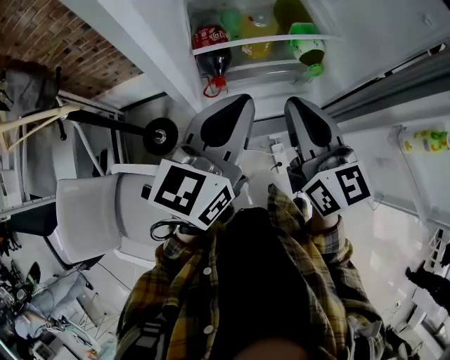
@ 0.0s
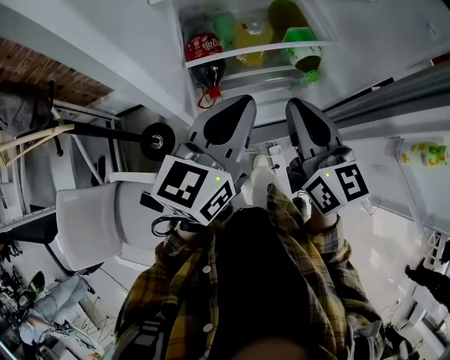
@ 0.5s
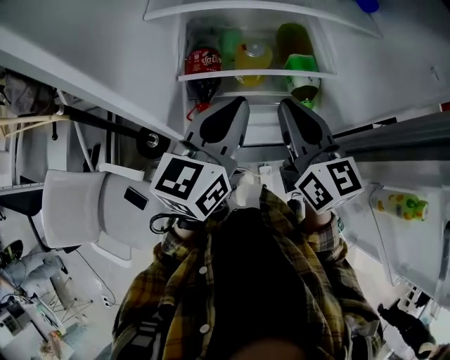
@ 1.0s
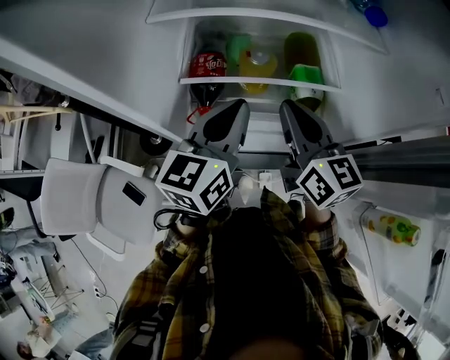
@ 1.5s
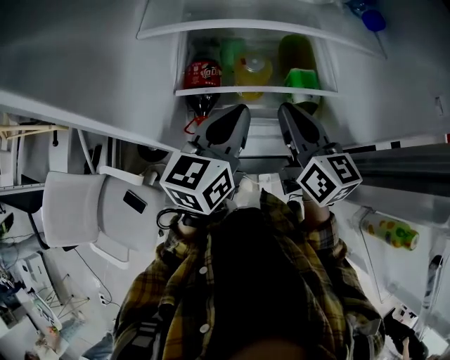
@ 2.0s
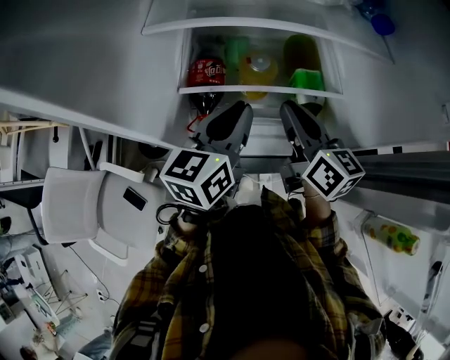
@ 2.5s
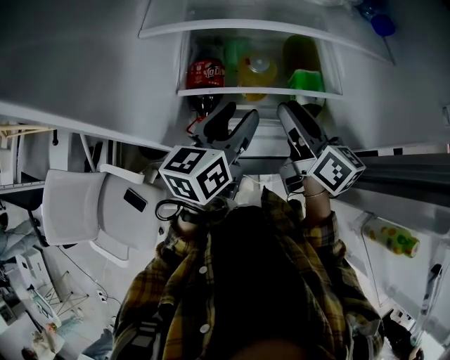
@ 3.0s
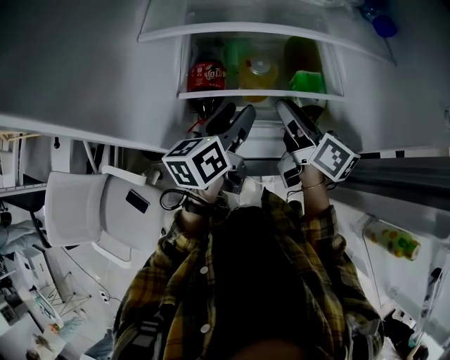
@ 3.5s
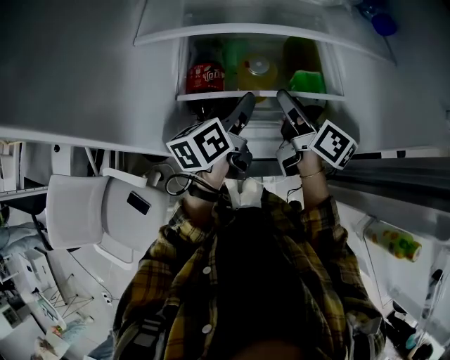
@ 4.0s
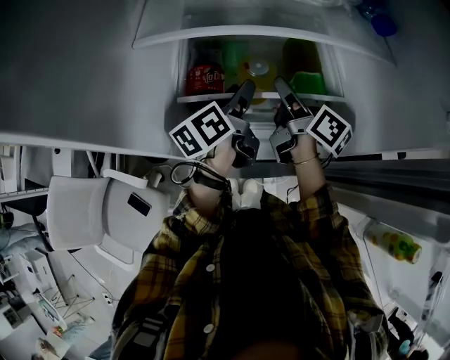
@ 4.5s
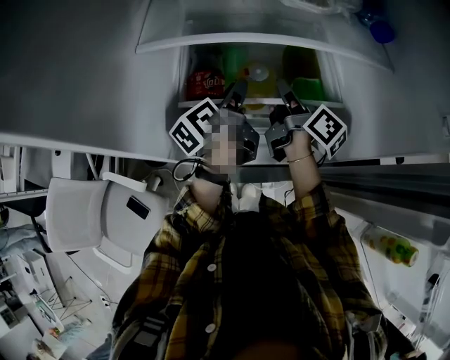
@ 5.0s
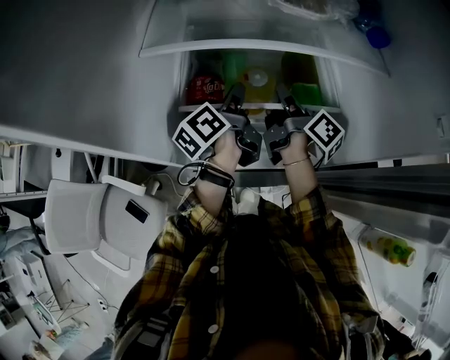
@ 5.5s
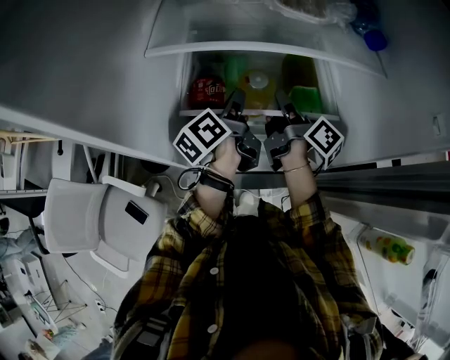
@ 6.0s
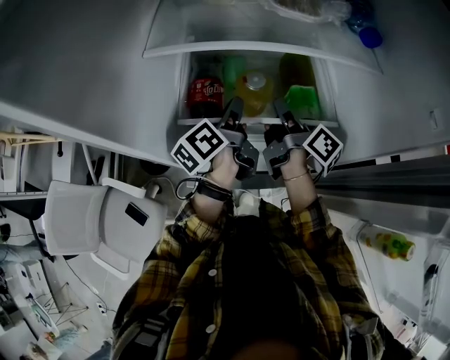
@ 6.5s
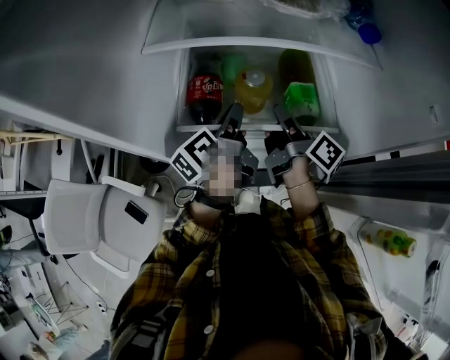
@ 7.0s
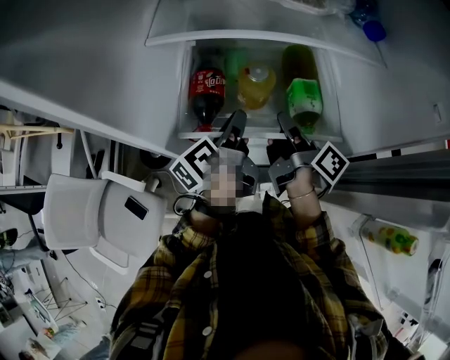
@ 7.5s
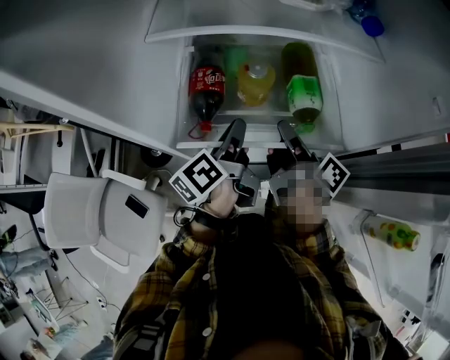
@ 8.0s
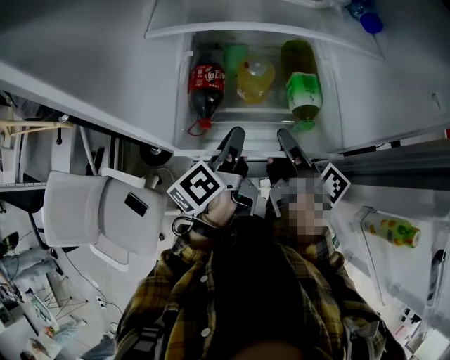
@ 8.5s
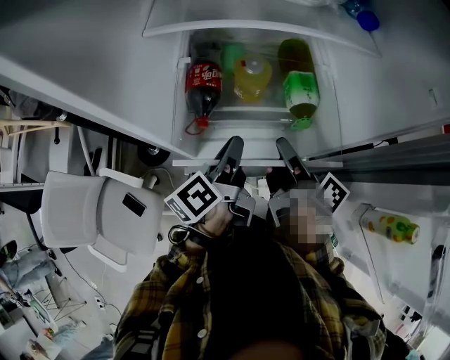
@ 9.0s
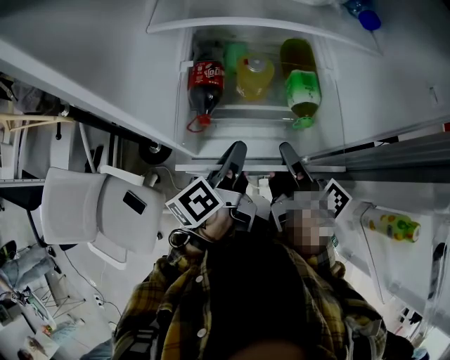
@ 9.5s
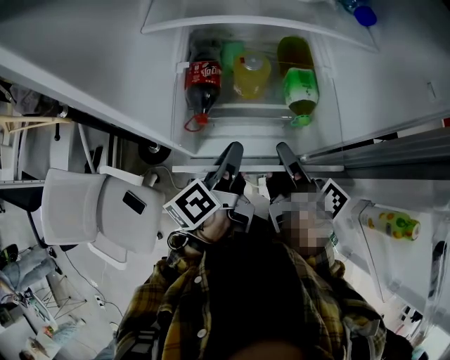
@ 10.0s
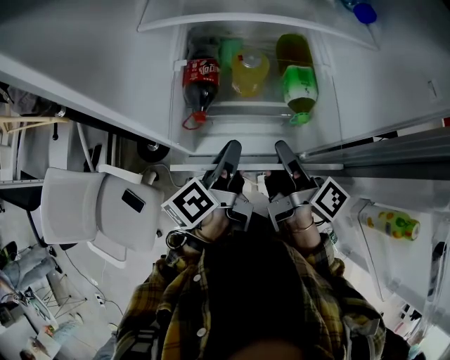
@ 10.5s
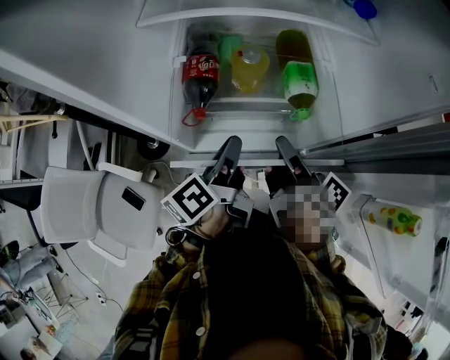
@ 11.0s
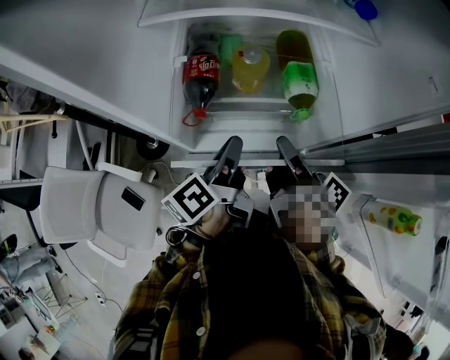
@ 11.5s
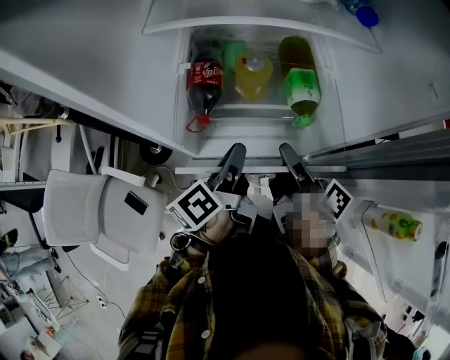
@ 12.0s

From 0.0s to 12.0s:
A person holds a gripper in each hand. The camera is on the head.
From 0.0s to 2.0s: The two grippers go approximately 15 cm forward and to the right.
From 2.0s to 4.0s: The left gripper moves downward and forward, roughly 10 cm, rotates approximately 30 degrees, and opens its fingers, while the right gripper goes about 10 cm forward and downward, turns by approximately 30 degrees, and opens its fingers.
From 4.0s to 6.0s: The left gripper changes its angle by approximately 20 degrees, and closes its fingers. Meanwhile the right gripper swivels some 20 degrees, and closes up.
From 6.0s to 8.0s: The grippers both shift backward by roughly 10 cm.
From 8.0s to 10.0s: Both grippers travel together backward, approximately 5 cm.
From 10.0s to 12.0s: Both grippers stay put.

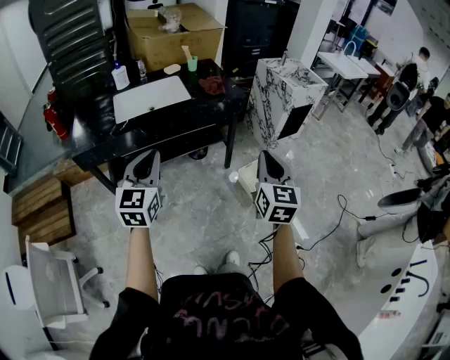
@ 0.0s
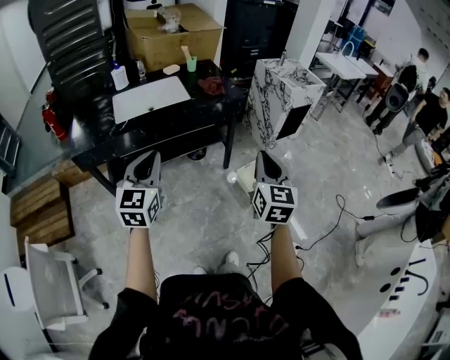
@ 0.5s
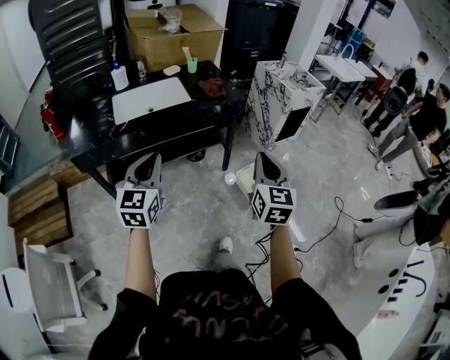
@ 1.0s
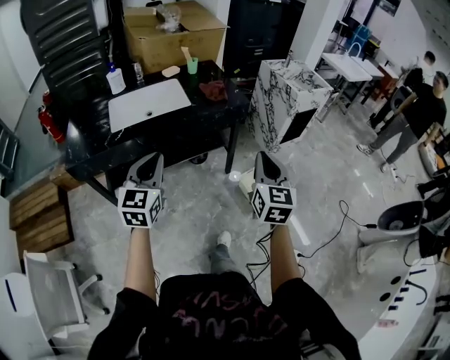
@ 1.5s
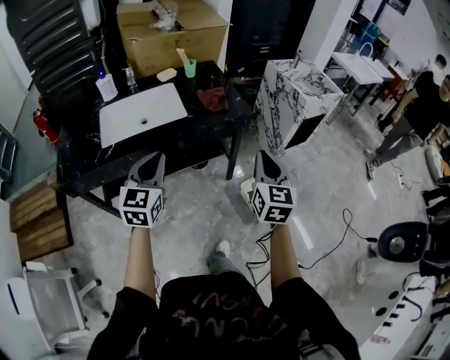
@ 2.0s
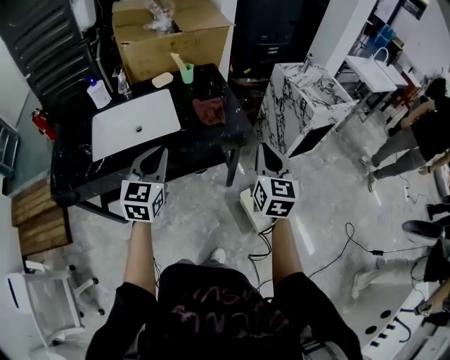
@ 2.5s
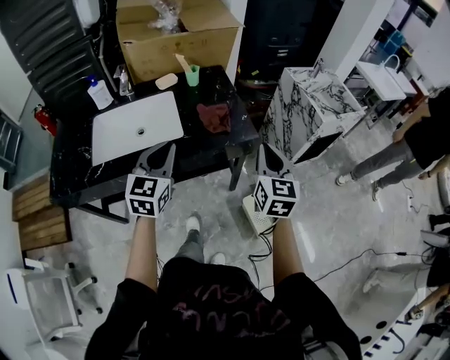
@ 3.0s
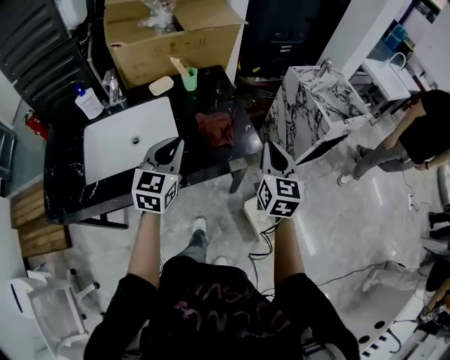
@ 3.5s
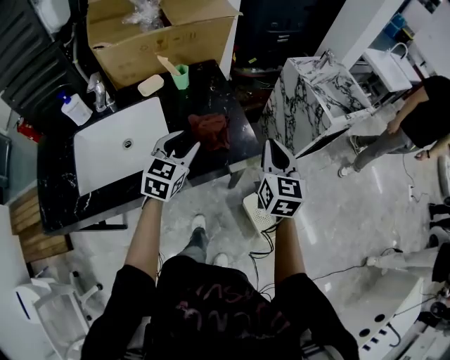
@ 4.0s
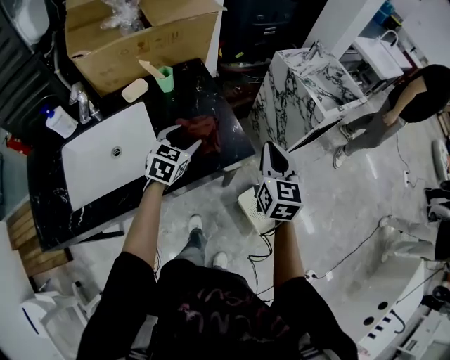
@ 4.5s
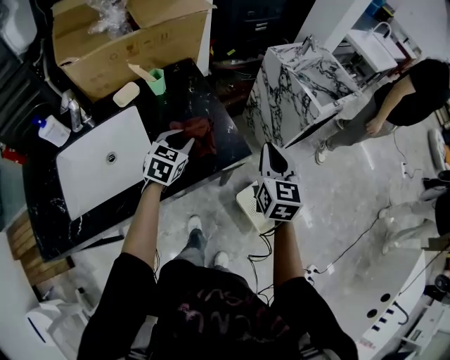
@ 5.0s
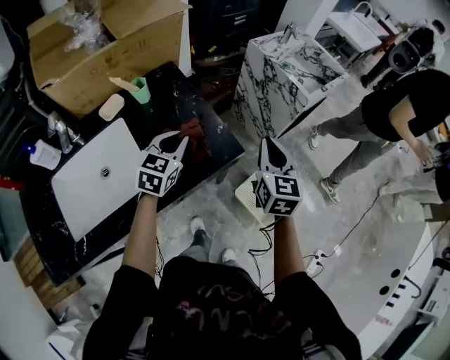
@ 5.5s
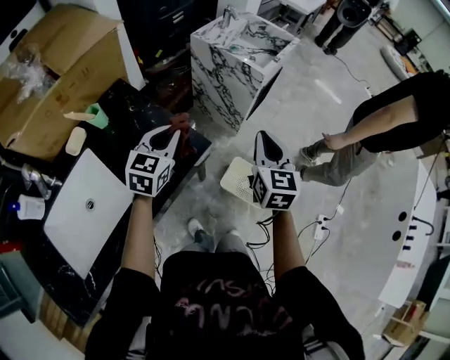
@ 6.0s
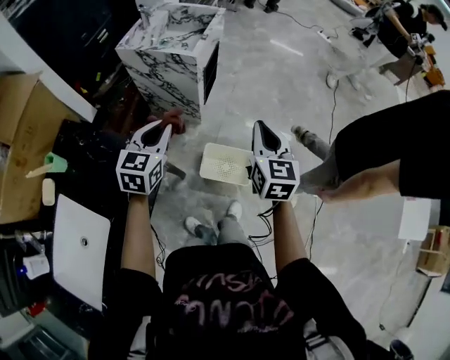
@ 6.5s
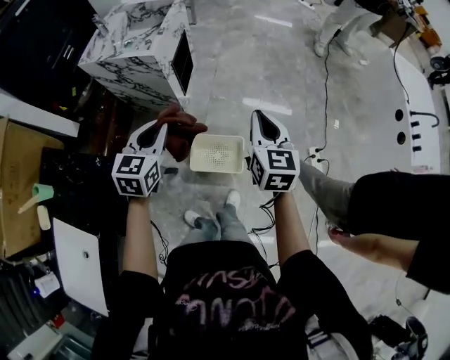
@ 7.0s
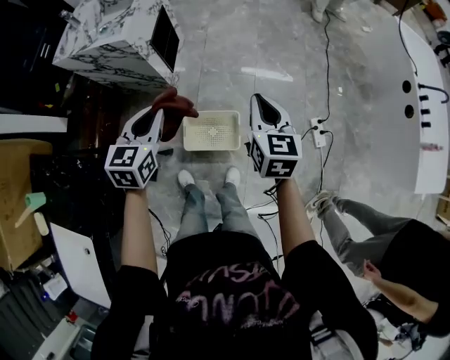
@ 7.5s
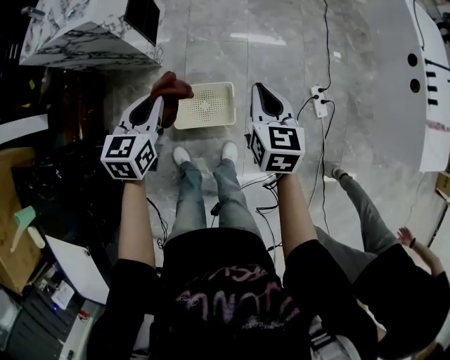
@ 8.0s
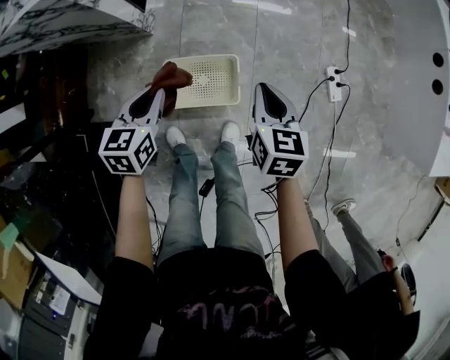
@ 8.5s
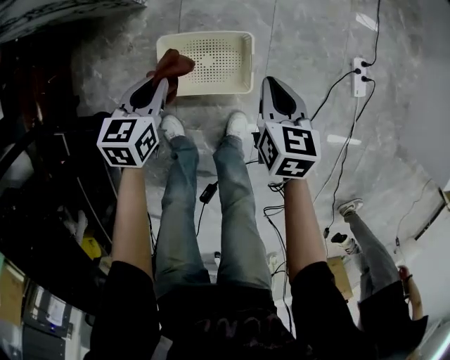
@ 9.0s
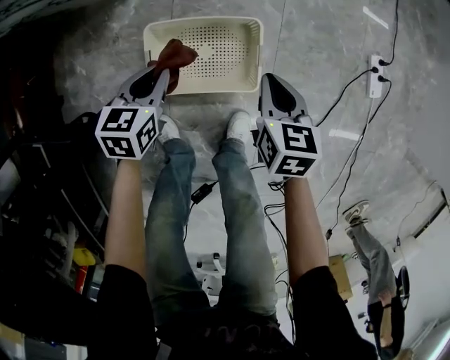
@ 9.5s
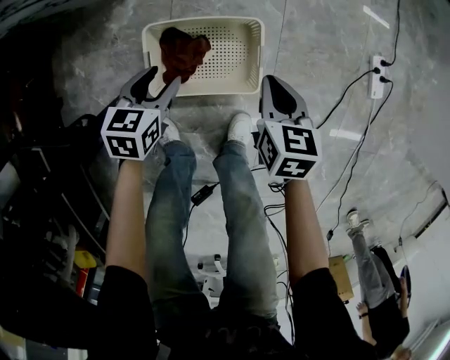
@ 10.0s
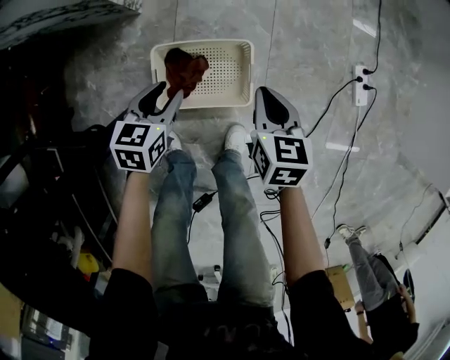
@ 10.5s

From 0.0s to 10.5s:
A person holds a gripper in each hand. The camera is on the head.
From 0.0s to 2.0s: The two grippers go some 20 cm forward.
From 2.0s to 4.0s: The two grippers go about 35 cm forward. The left gripper opens.
From 4.0s to 6.5s: The left gripper reaches approximately 10 cm downward, then returns, swivels approximately 40 degrees, and closes its fingers, while the right gripper ends up some 30 cm from where it was, and turns by about 50 degrees.
From 6.5s to 8.5s: Both grippers move downward and to the right, approximately 40 cm. The left gripper turns by some 30 degrees; the right gripper changes its angle by some 30 degrees.
From 8.5s to 10.5s: The two grippers go about 25 cm downward. The left gripper opens its fingers.

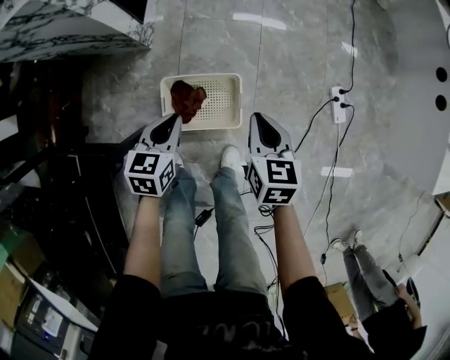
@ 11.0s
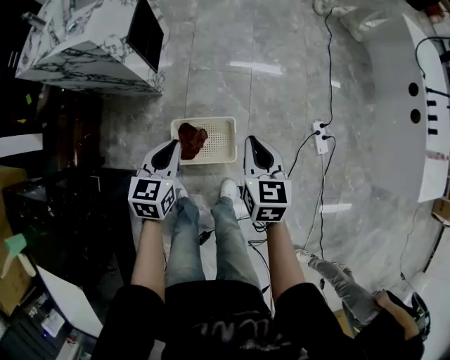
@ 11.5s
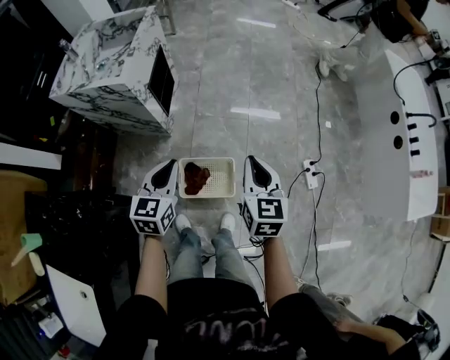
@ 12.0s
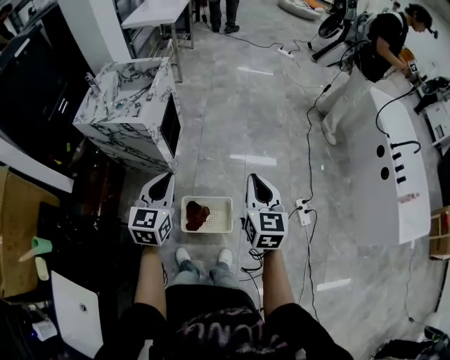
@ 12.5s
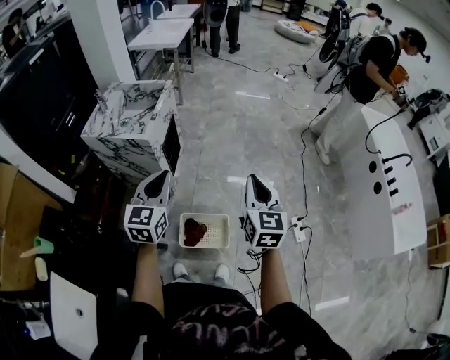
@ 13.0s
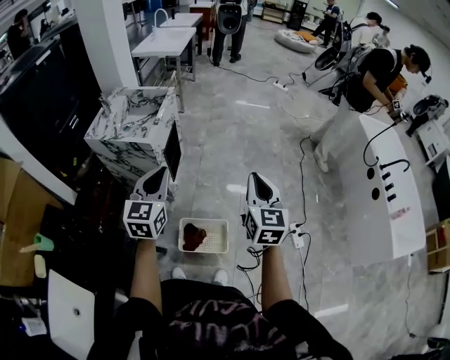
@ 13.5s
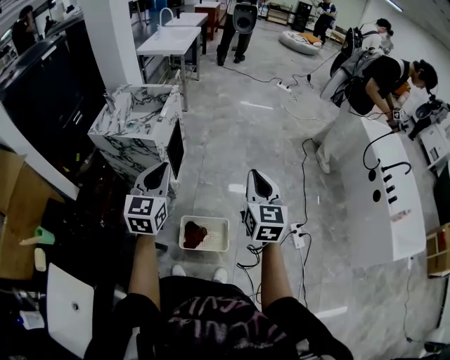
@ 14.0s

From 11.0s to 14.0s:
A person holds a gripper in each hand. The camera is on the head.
From 11.0s to 12.5s: The grippers both shift upward by some 50 cm. The right gripper rotates some 30 degrees. The left gripper swivels roughly 30 degrees.
From 12.5s to 14.0s: Both grippers move upward, roughly 10 cm.

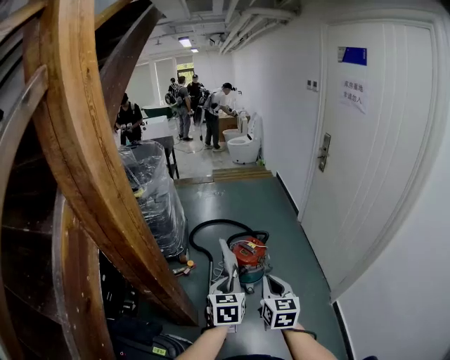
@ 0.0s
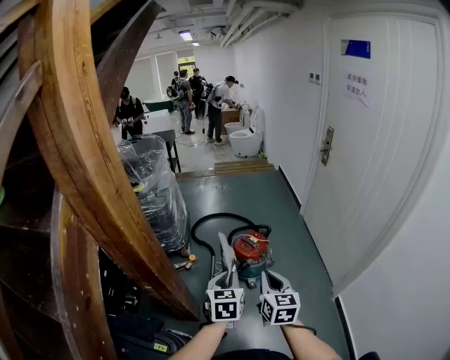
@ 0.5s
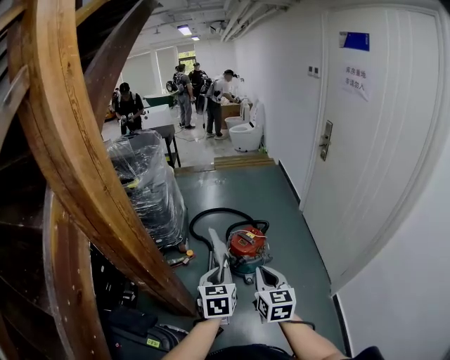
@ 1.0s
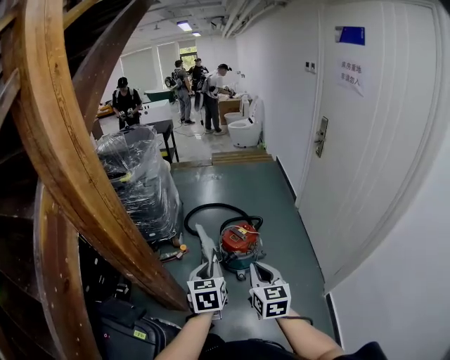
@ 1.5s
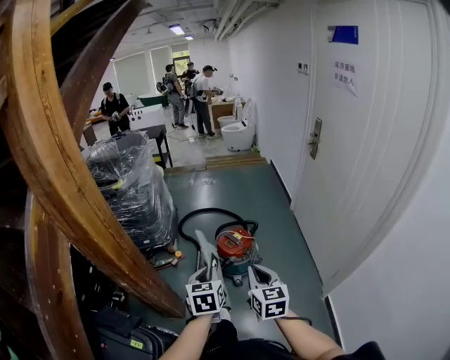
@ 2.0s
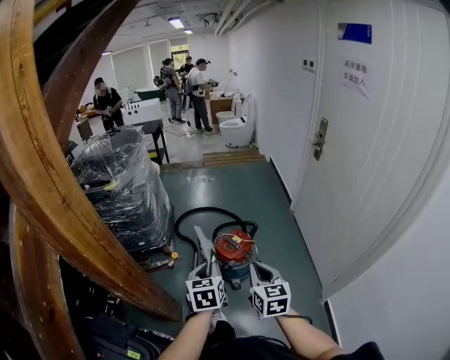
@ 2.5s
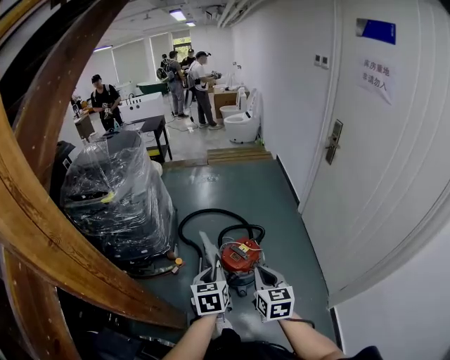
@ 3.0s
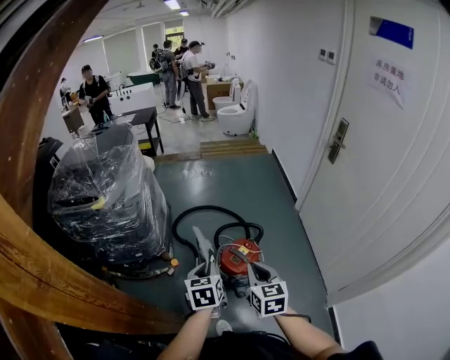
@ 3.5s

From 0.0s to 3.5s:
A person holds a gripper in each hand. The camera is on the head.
From 0.0s to 2.0s: The right gripper is displaced to the right by roughly 5 cm. Meanwhile the left gripper changes place by some 5 cm.
From 2.0s to 3.5s: Both grippers travel together forward, roughly 25 cm.
